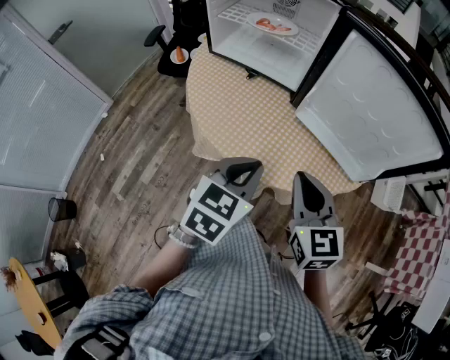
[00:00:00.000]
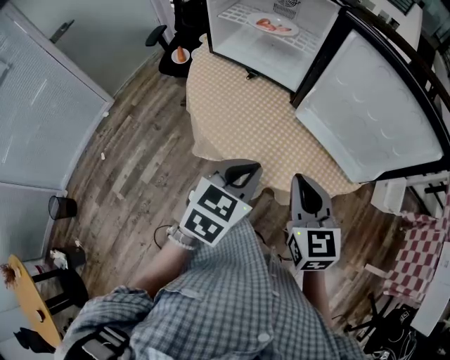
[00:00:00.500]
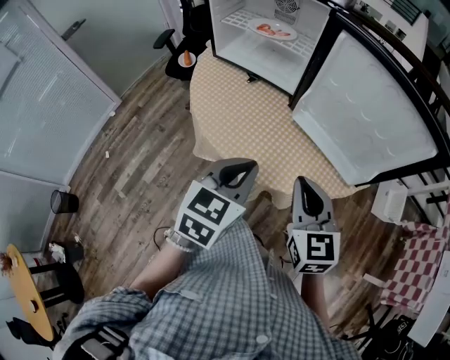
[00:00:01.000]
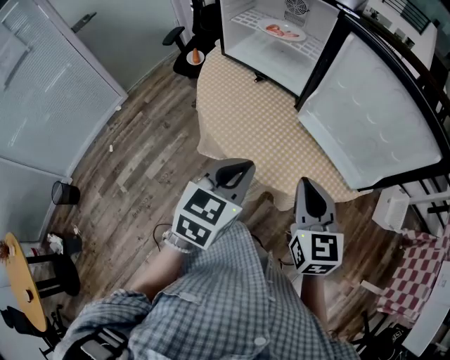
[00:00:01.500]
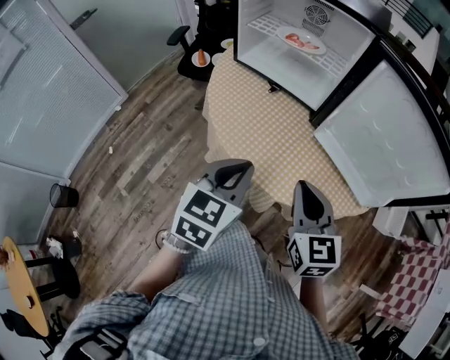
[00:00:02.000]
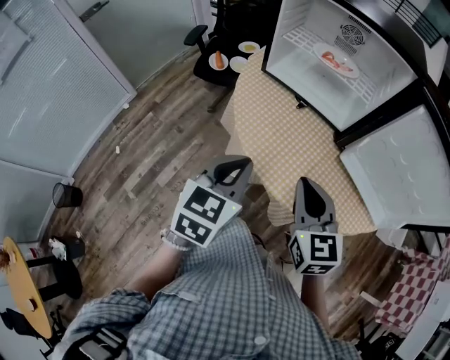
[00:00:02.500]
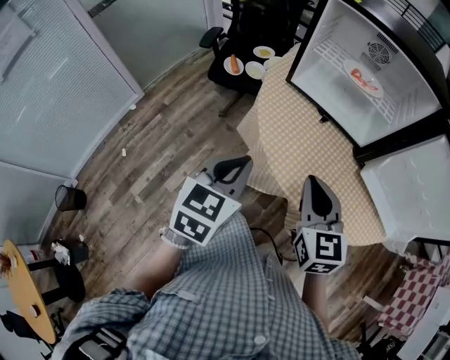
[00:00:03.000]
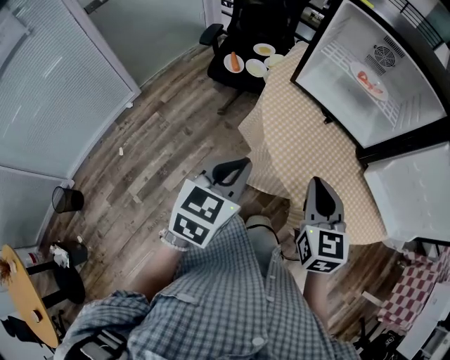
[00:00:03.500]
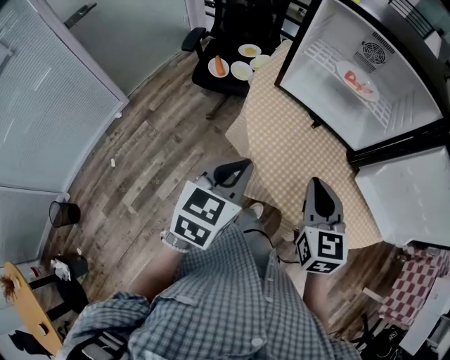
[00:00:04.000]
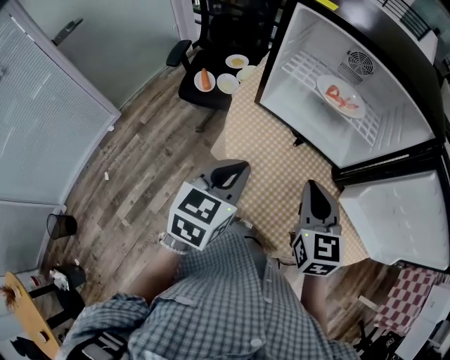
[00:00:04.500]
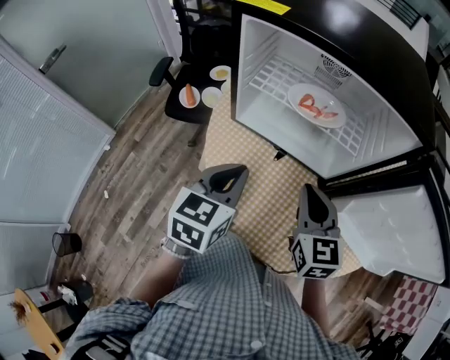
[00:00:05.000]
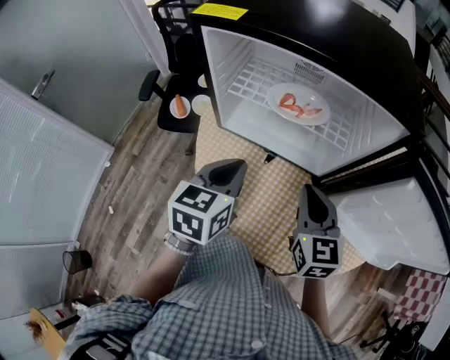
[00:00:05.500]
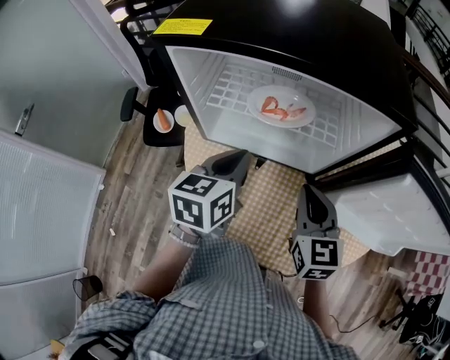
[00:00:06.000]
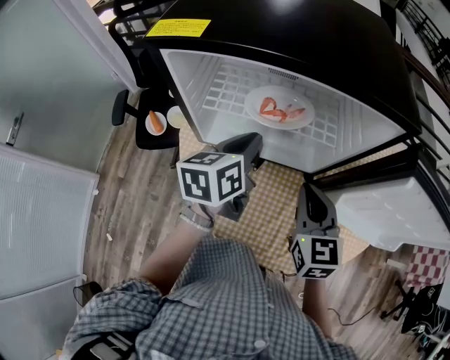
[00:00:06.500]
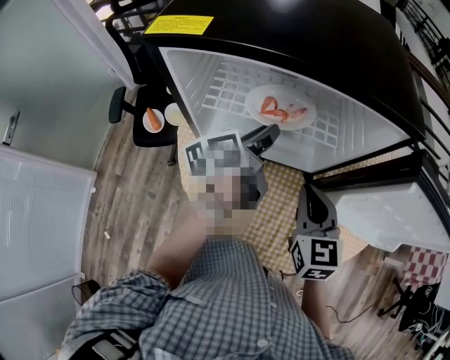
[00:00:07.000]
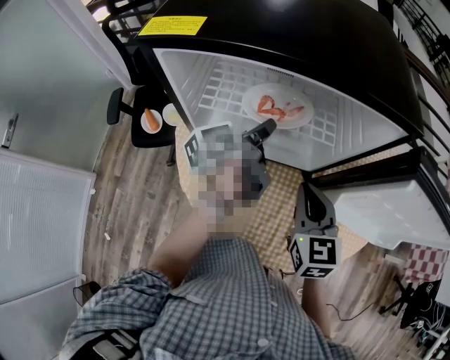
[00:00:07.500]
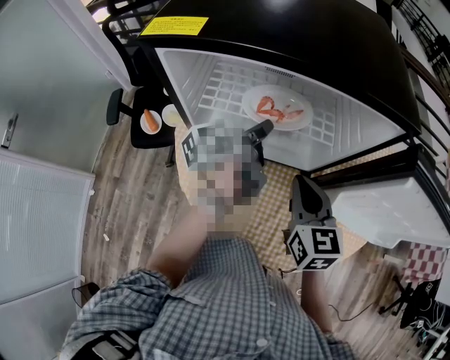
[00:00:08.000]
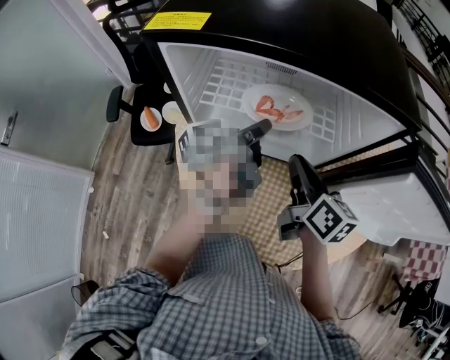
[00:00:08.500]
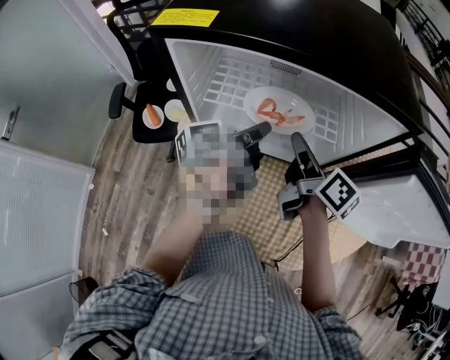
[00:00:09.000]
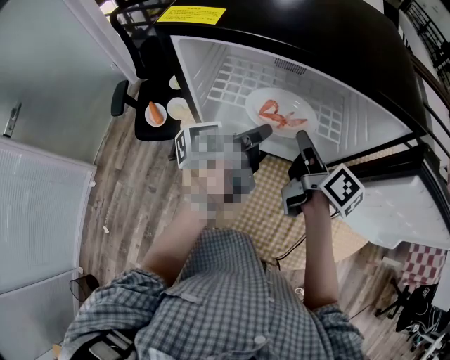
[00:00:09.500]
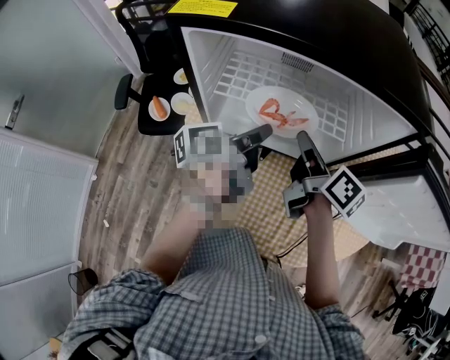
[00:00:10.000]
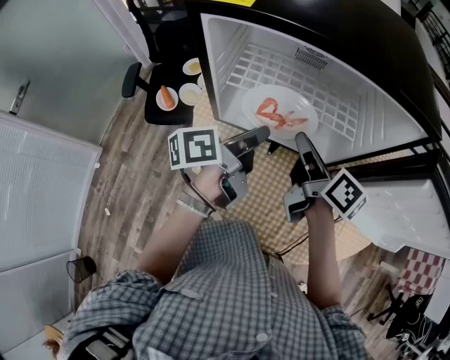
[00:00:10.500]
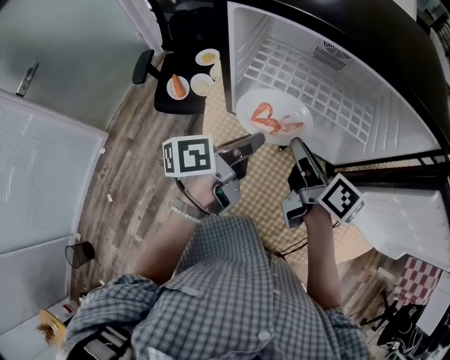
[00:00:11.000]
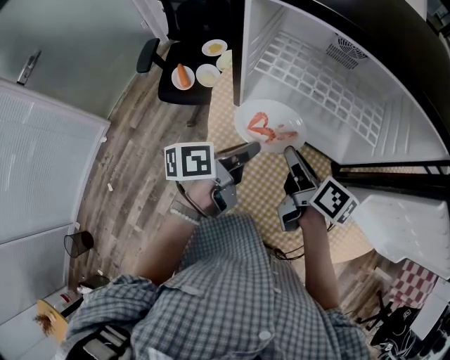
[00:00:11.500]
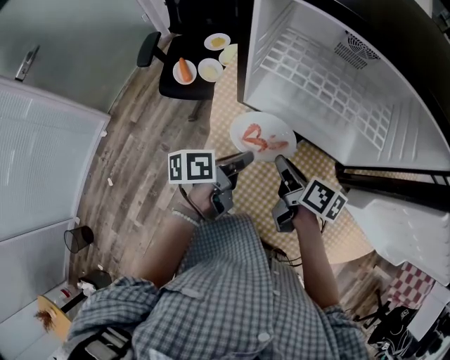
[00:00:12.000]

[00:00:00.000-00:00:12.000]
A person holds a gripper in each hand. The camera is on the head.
00:00:00.000 to 00:00:02.000: The left gripper is displaced to the left by some 5 cm.
00:00:02.000 to 00:00:04.000: The grippers both shift to the left and forward by roughly 25 cm.
00:00:04.000 to 00:00:06.000: Both grippers move forward and to the right, roughly 25 cm.
00:00:06.000 to 00:00:08.000: The left gripper goes some 10 cm forward, and twists roughly 50 degrees counterclockwise, seen from behind.
00:00:08.000 to 00:00:10.000: The right gripper heads forward, covering roughly 5 cm, and twists roughly 50 degrees clockwise, seen from behind; the left gripper ends up some 5 cm from where it was.
00:00:10.000 to 00:00:12.000: The left gripper is displaced downward, backward and to the left by about 20 cm. The right gripper is displaced downward, to the left and backward by some 20 cm, and rotates about 30 degrees.

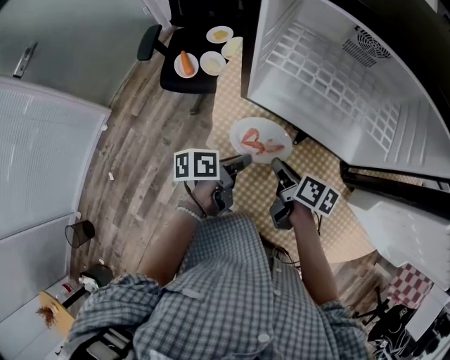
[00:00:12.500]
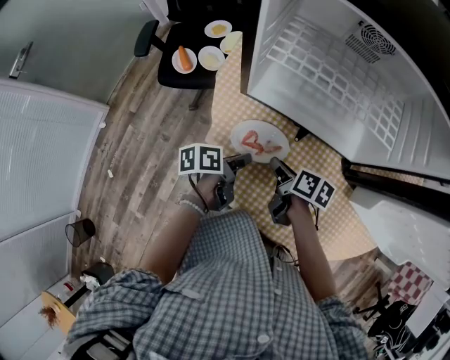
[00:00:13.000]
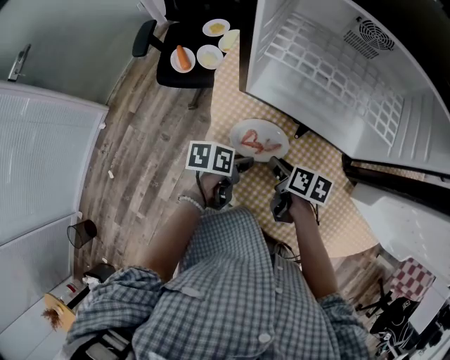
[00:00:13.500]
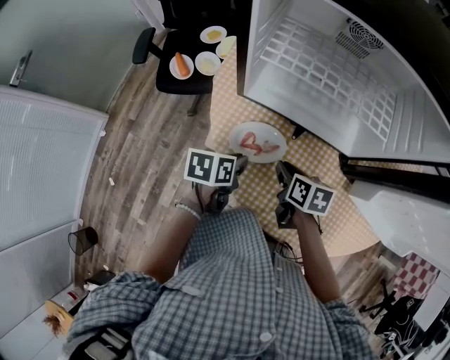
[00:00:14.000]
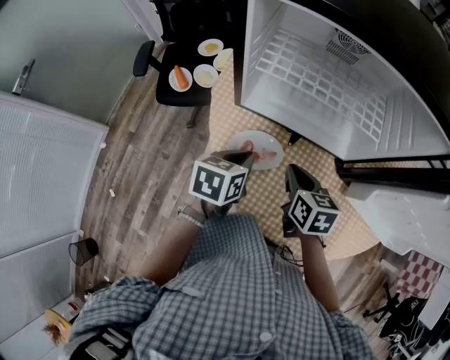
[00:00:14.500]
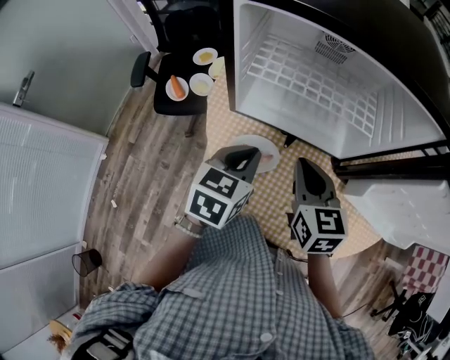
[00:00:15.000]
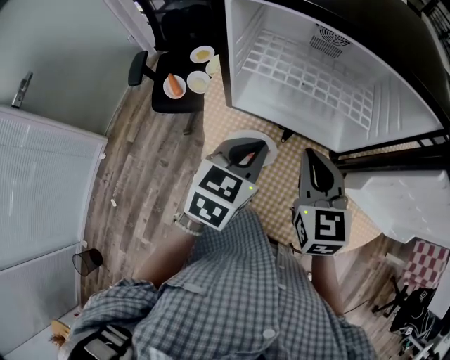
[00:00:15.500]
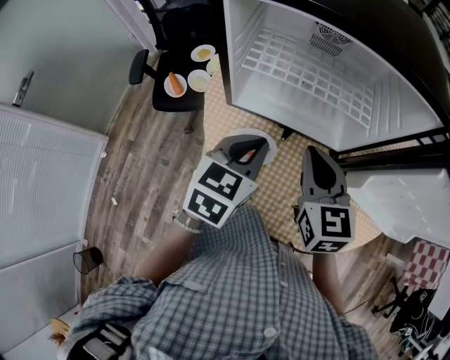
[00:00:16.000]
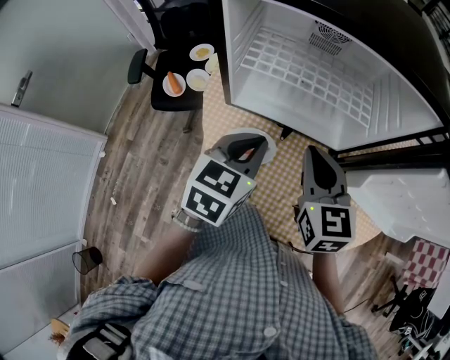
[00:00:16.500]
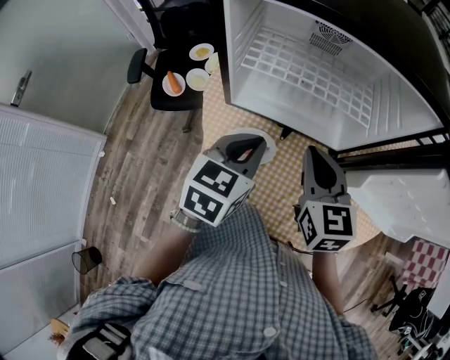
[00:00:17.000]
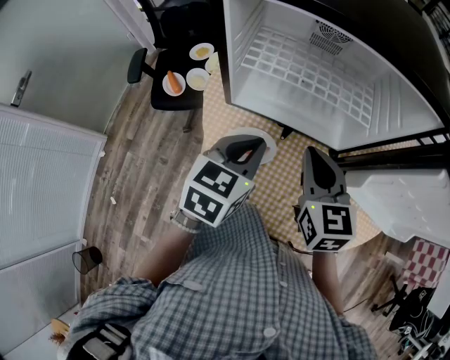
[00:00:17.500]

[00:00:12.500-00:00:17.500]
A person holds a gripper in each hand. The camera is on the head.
00:00:12.500 to 00:00:15.000: The grippers both shift upward by about 15 cm. The left gripper twists some 60 degrees clockwise, seen from behind. The right gripper twists roughly 50 degrees counterclockwise, seen from behind.
00:00:15.000 to 00:00:17.500: There are only small adjustments of the grippers.

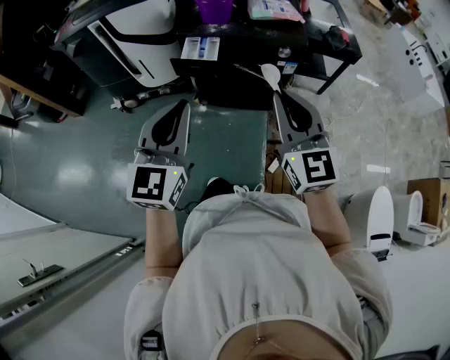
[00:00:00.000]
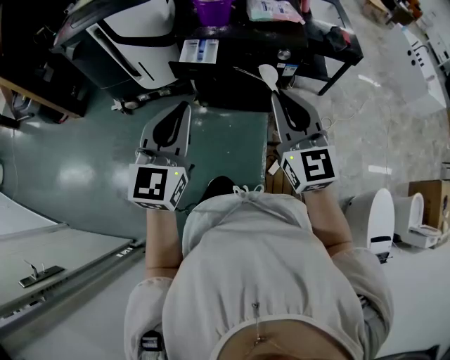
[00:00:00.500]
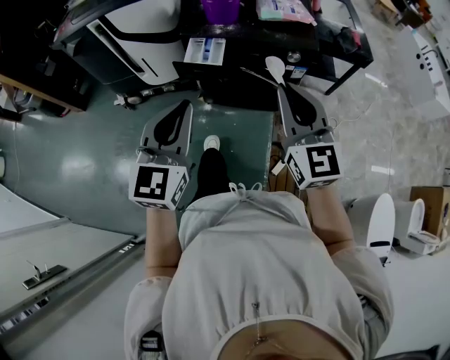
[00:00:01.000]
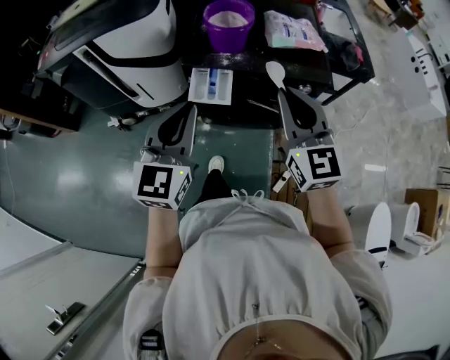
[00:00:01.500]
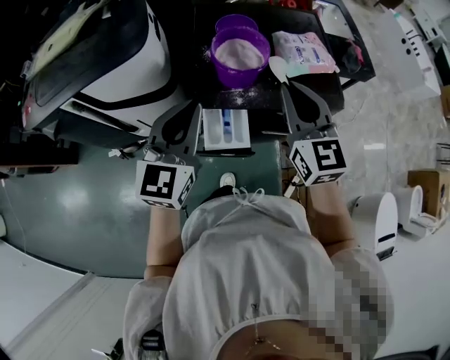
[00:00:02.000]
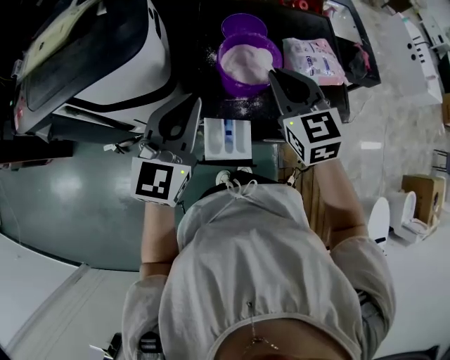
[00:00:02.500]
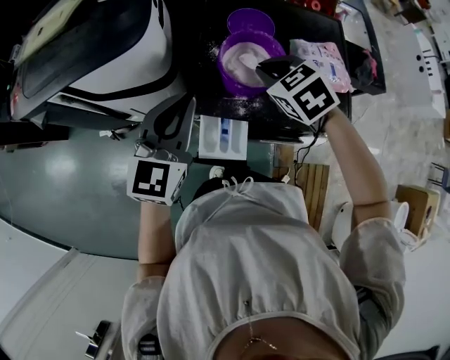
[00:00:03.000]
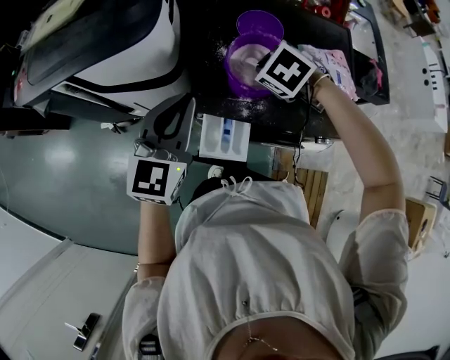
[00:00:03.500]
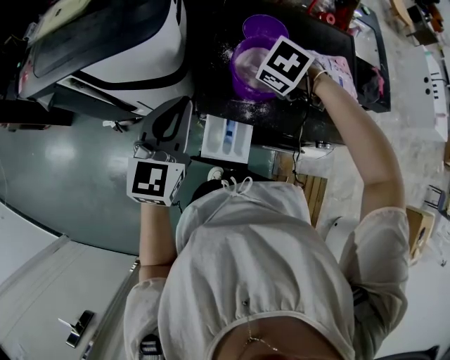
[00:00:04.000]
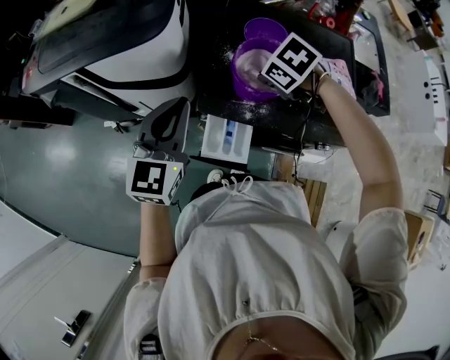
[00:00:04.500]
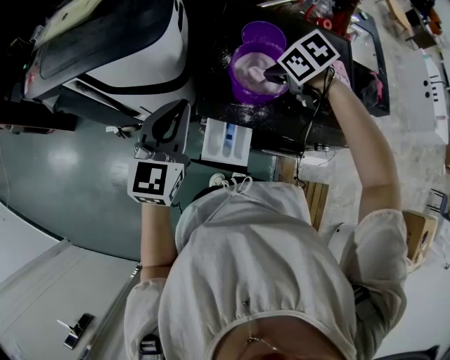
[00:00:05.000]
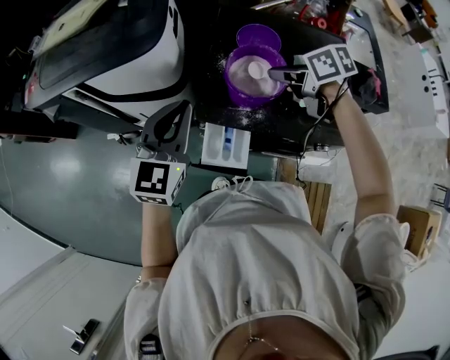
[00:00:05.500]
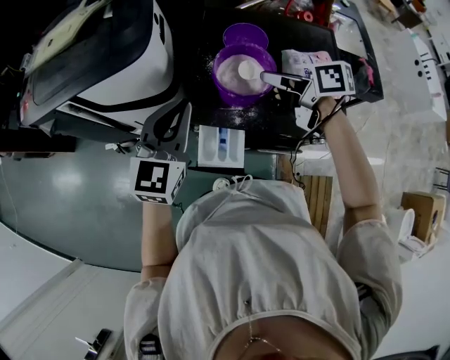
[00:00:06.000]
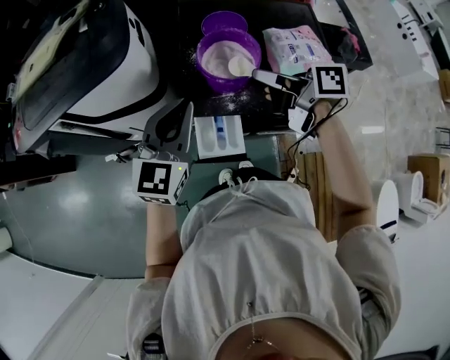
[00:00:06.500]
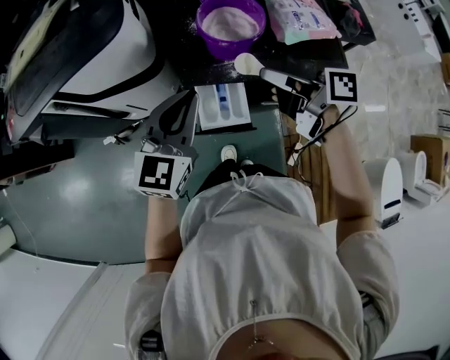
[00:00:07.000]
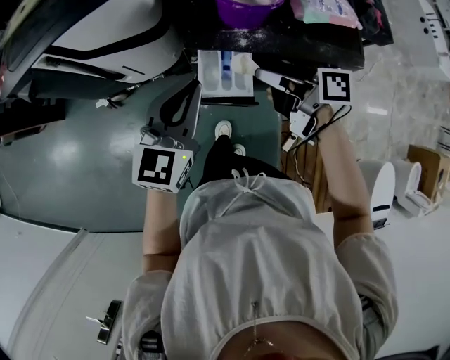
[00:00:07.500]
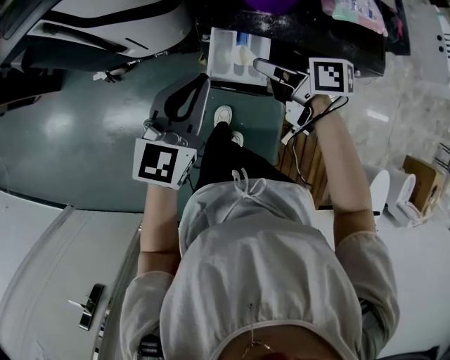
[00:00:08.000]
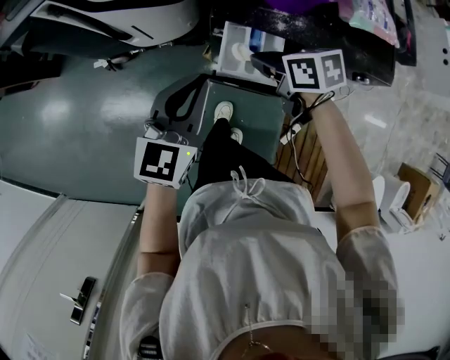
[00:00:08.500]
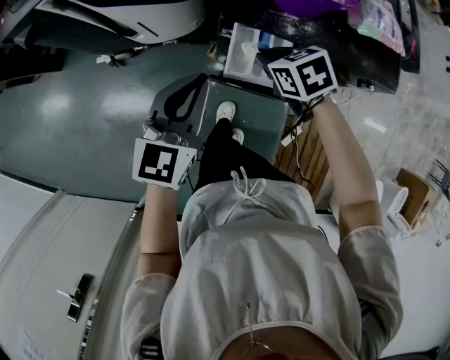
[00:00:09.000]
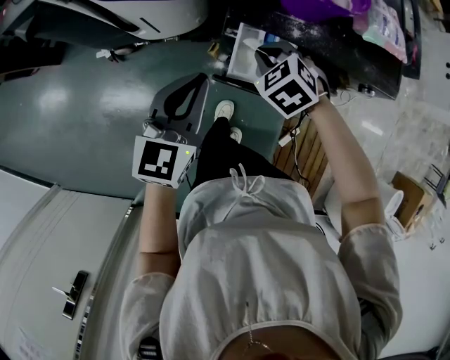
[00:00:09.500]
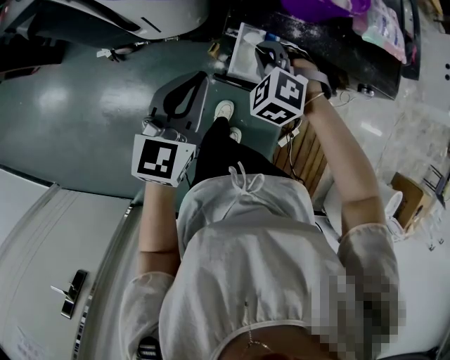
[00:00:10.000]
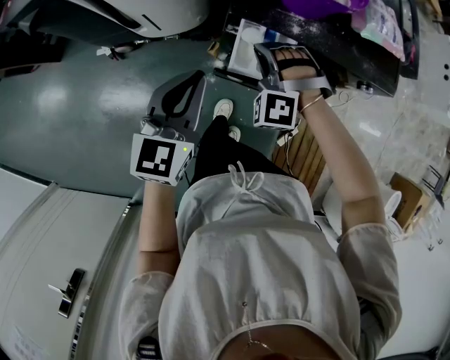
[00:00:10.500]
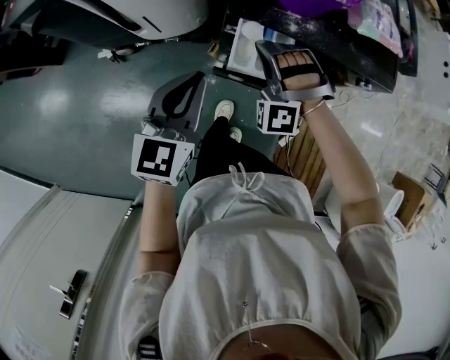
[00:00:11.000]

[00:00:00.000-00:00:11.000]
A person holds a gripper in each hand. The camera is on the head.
00:00:00.000 to 00:00:02.000: The pair of grippers is taken forward, approximately 40 cm.
00:00:02.000 to 00:00:03.500: The right gripper is displaced forward and downward by some 25 cm, and tips its fingers downward by some 60 degrees, while the left gripper heads forward, covering about 10 cm.
00:00:03.500 to 00:00:05.500: The right gripper ends up roughly 5 cm from where it was, and turns by roughly 60 degrees.
00:00:05.500 to 00:00:07.500: The left gripper shifts approximately 15 cm backward and downward. The right gripper shifts some 20 cm backward and downward, and changes its angle by some 40 degrees.
00:00:07.500 to 00:00:09.000: The right gripper goes about 15 cm downward, to the left and forward, and rotates around the line of its fingers by approximately 50 degrees, counterclockwise from behind; the left gripper heads downward and to the left, covering approximately 10 cm.
00:00:09.000 to 00:00:11.000: The right gripper goes some 5 cm upward, and rotates around the line of its fingers by approximately 80 degrees, counterclockwise from behind.
